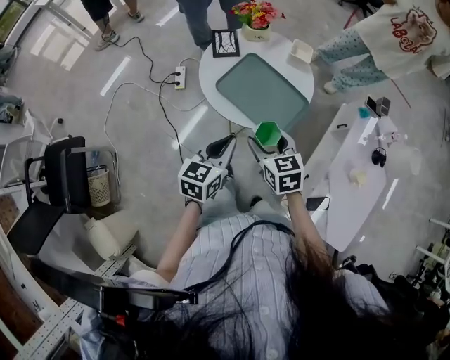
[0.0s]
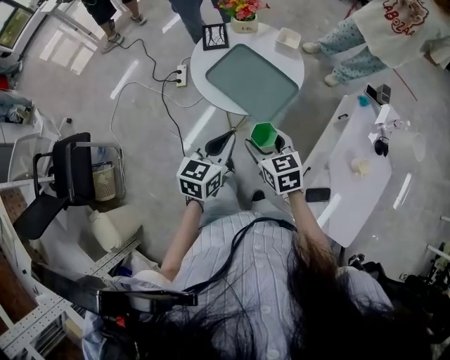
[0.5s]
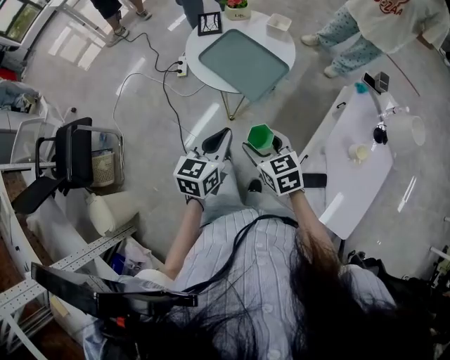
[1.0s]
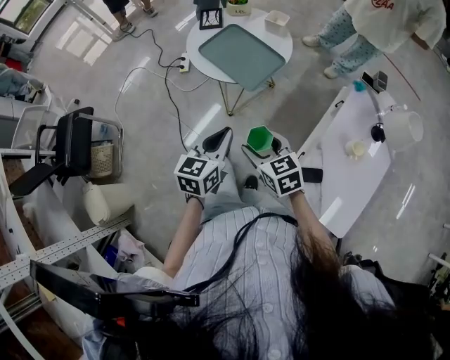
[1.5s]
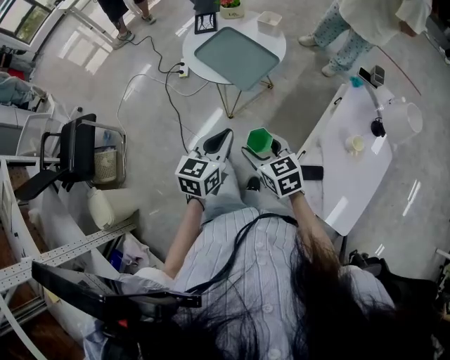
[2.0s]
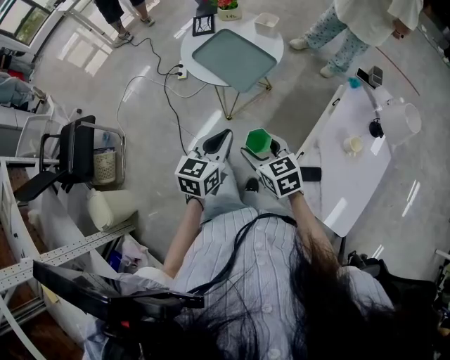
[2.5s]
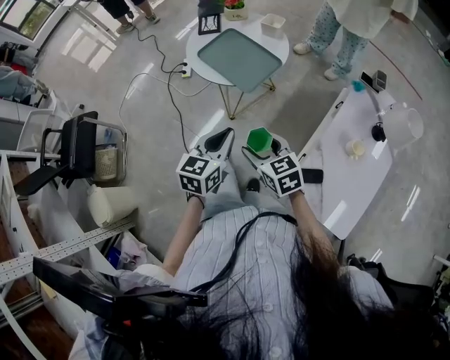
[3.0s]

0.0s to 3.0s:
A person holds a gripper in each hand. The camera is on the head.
0.0s to 1.5s: Both grippers travel together backward and to the right, some 25 cm.
1.5s to 3.0s: The grippers stay close to where they were, moving slightly.

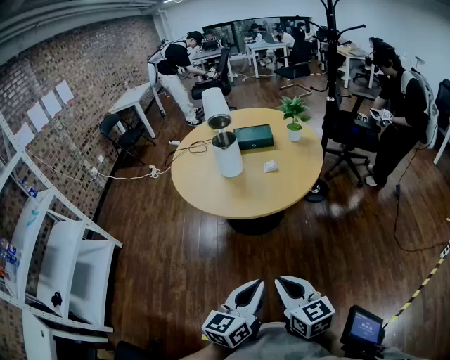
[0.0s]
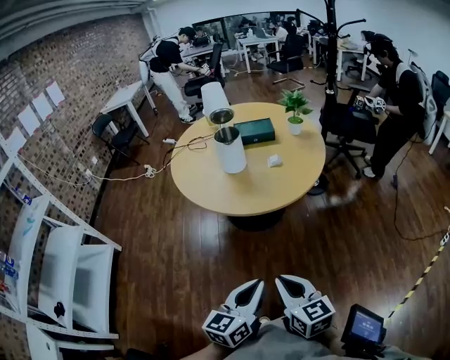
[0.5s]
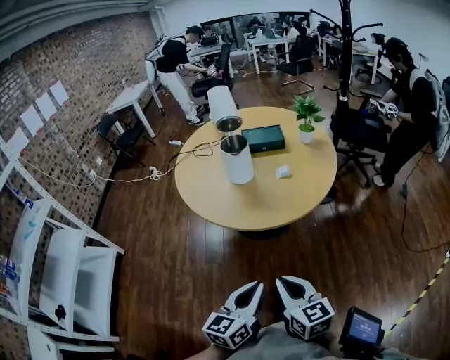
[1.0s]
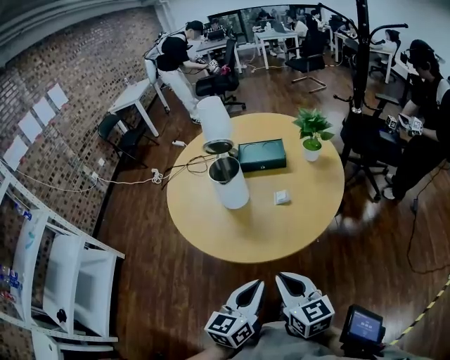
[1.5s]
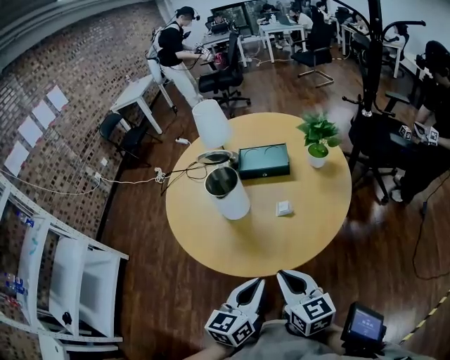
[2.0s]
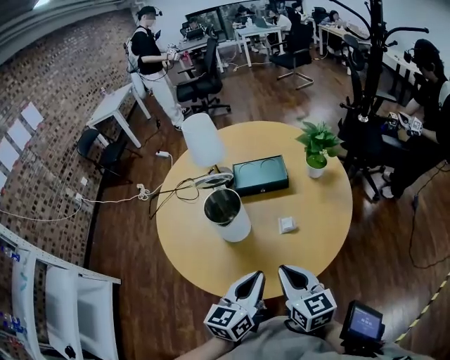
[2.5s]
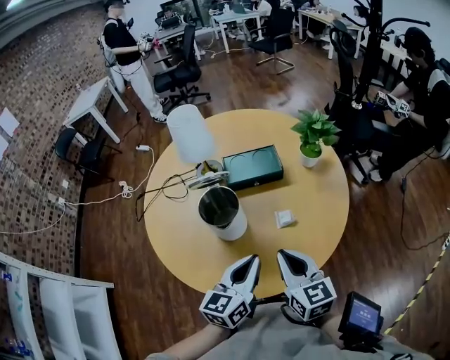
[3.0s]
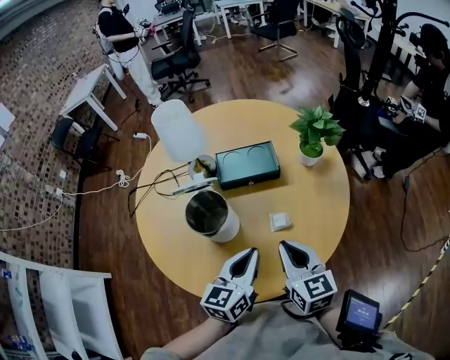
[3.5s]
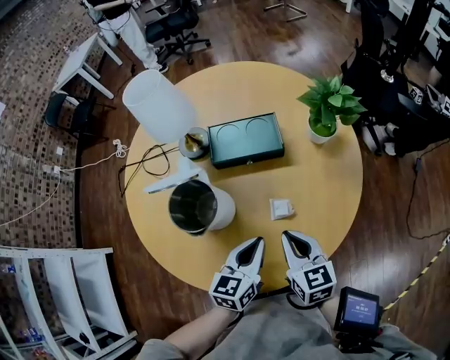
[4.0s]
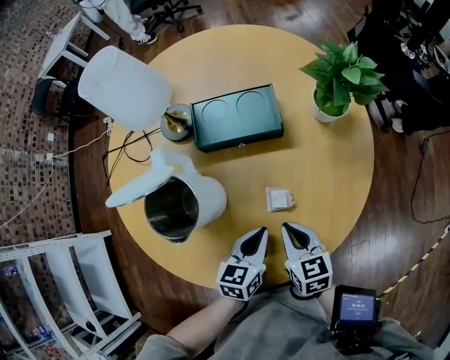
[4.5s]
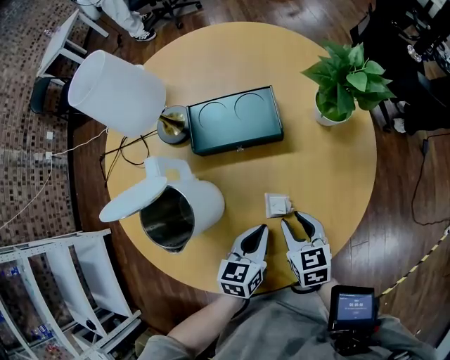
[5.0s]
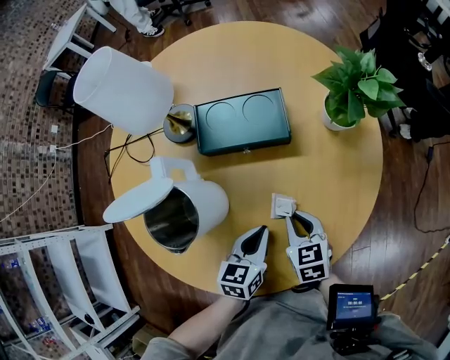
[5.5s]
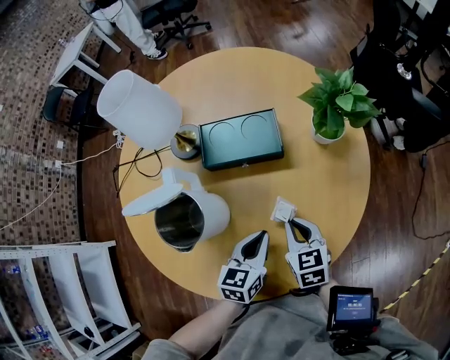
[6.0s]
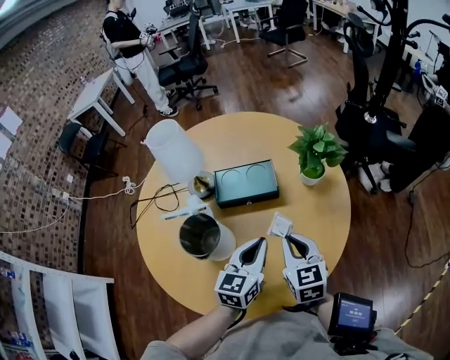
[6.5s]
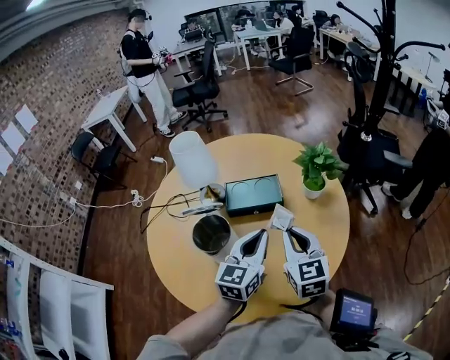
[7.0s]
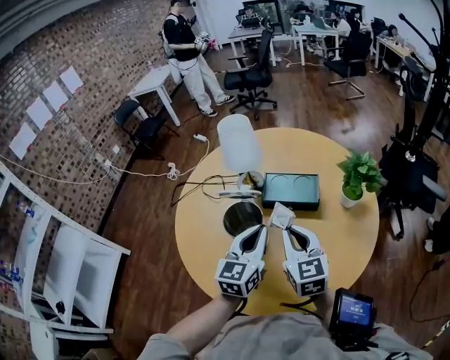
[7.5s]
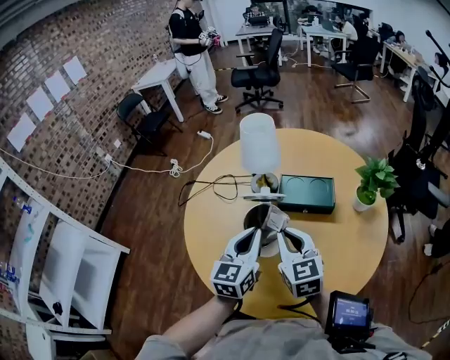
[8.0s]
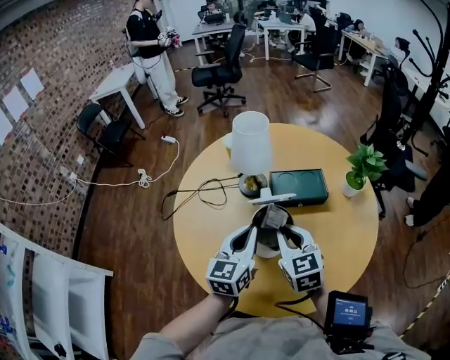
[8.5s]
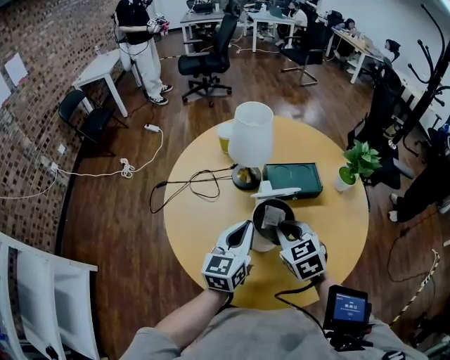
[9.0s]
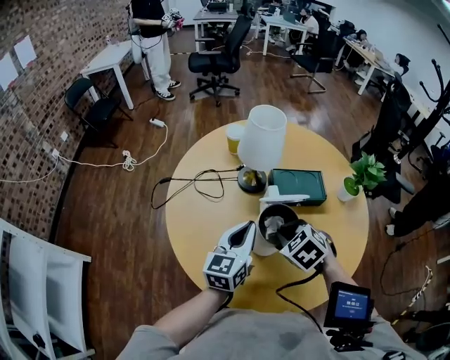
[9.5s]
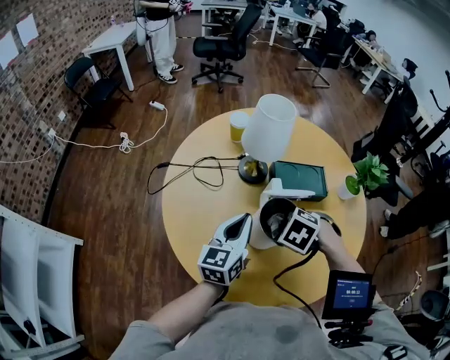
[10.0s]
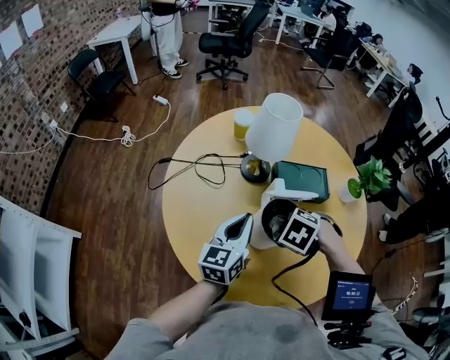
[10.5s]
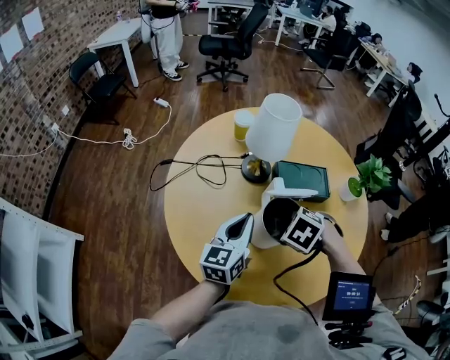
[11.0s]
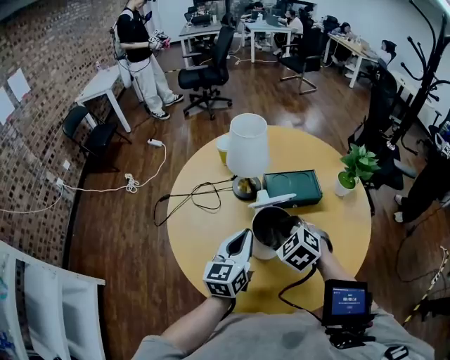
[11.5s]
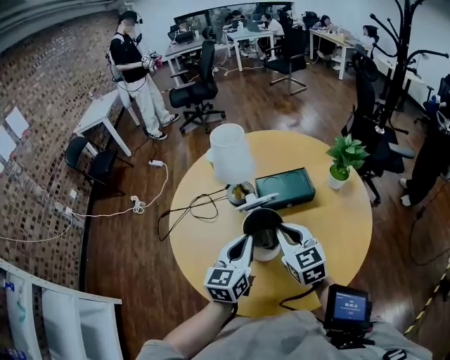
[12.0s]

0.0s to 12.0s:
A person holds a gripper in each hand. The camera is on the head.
0.0s to 2.0s: The two grippers go approximately 35 cm forward.
2.0s to 4.0s: The two grippers go approximately 30 cm forward and downward.
4.0s to 6.0s: The right gripper is displaced downward and forward by some 10 cm, and opens, then closes once more. The left gripper travels downward by some 5 cm.
6.0s to 8.0s: The two grippers go about 30 cm upward and to the left. The right gripper changes its angle by roughly 30 degrees. Meanwhile the left gripper changes its angle by about 30 degrees.
8.0s to 10.0s: The right gripper moves downward, some 10 cm, and tilts its fingers some 60 degrees downward. Meanwhile the left gripper shifts by approximately 15 cm.
10.0s to 12.0s: The right gripper moves upward, about 10 cm, and tilts its fingers roughly 60 degrees upward, while the left gripper ends up about 10 cm from where it was.

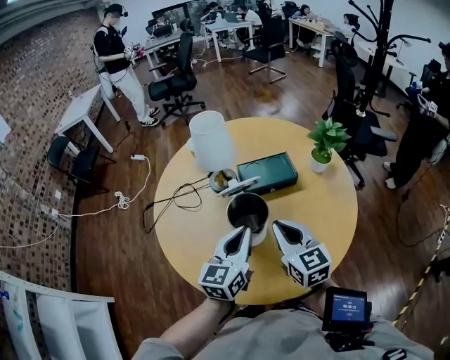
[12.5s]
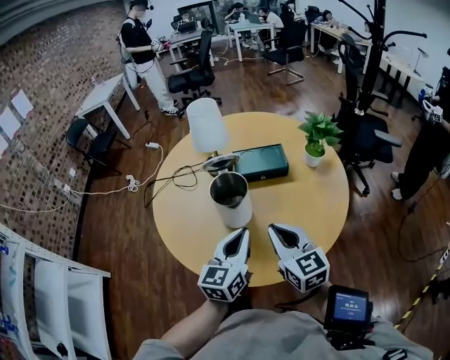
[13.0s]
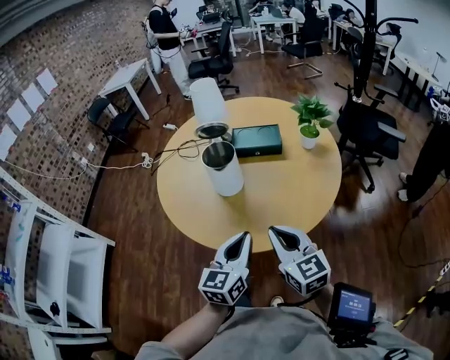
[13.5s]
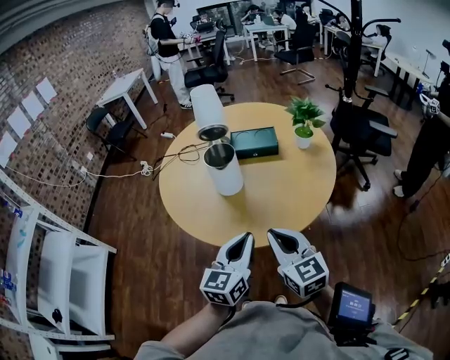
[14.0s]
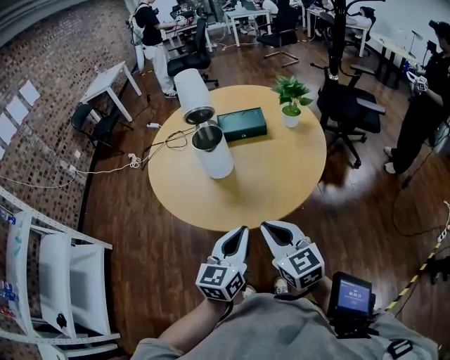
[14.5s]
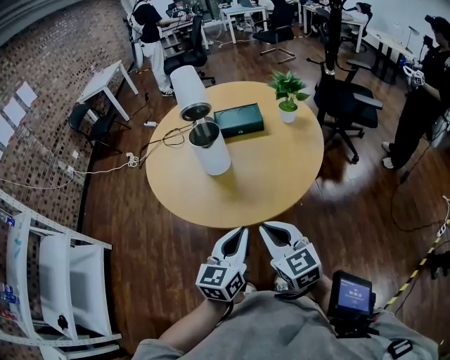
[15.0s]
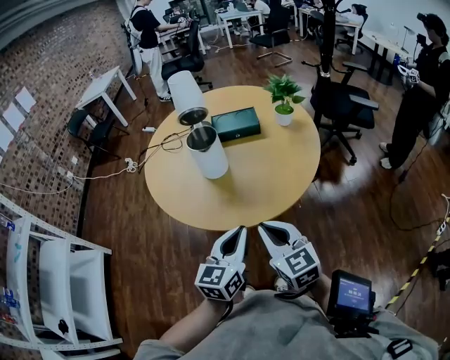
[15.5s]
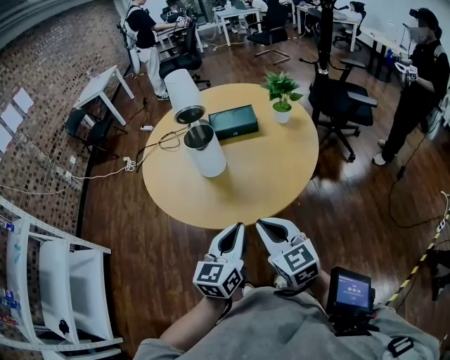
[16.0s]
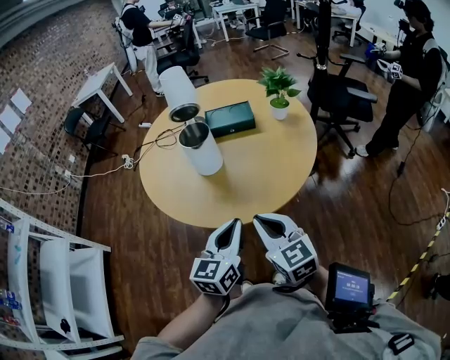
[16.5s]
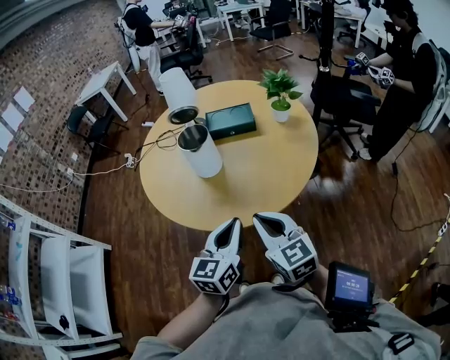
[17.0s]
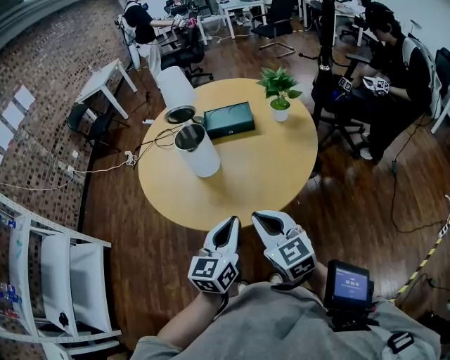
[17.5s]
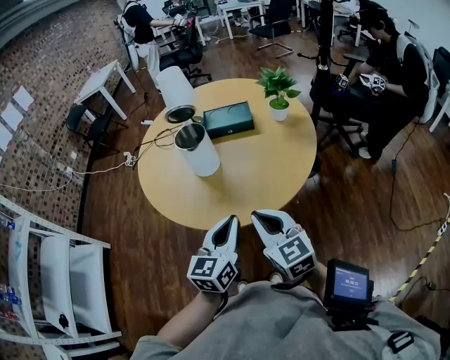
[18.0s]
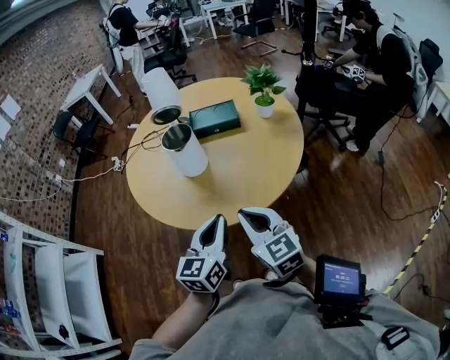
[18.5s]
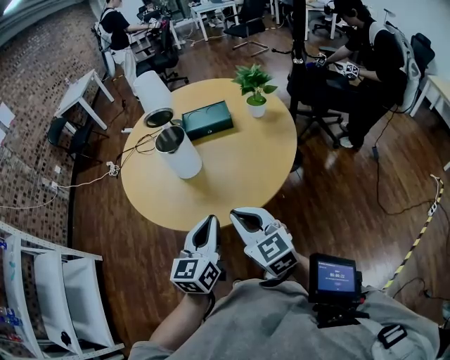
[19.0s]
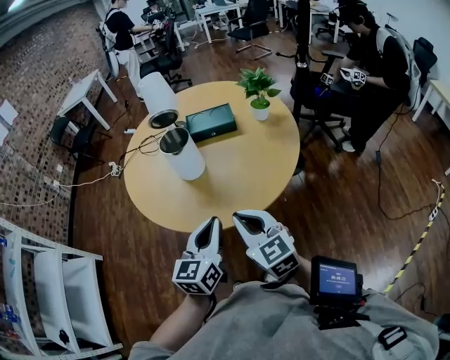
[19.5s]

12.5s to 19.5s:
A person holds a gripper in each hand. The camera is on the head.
12.5s to 14.5s: The grippers both shift backward by about 30 cm.
14.5s to 16.0s: The grippers stay close to where they were, moving slightly.
16.0s to 17.5s: The right gripper ends up about 5 cm from where it was.
17.5s to 19.5s: The grippers stay close to where they were, moving slightly.

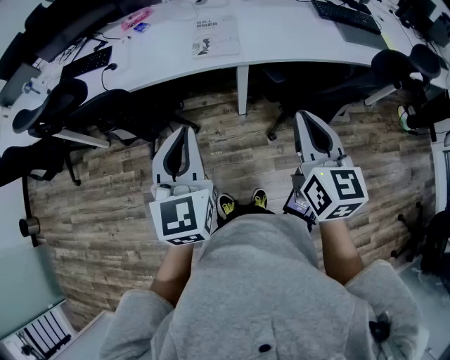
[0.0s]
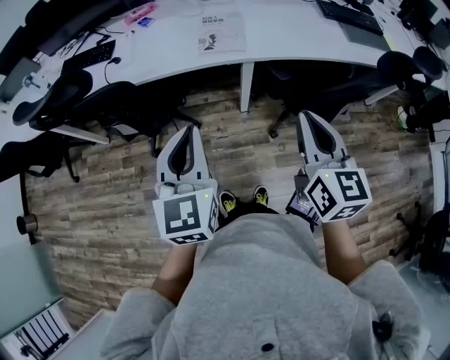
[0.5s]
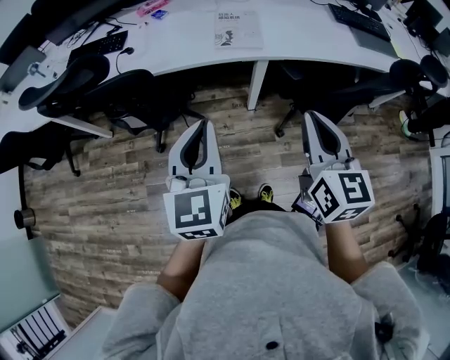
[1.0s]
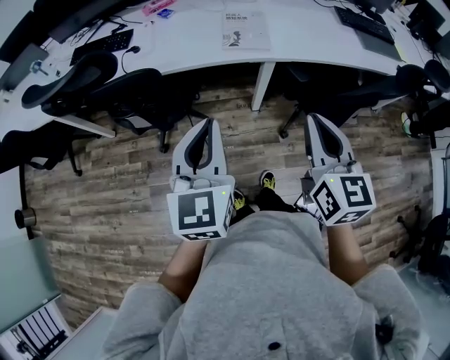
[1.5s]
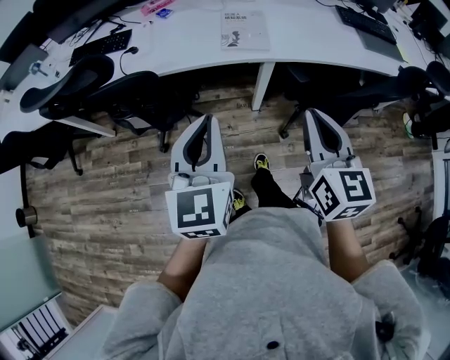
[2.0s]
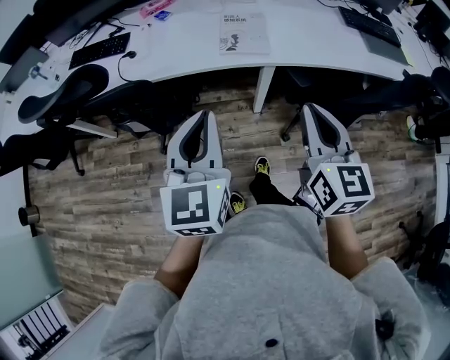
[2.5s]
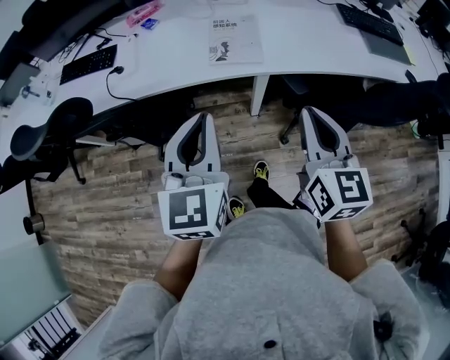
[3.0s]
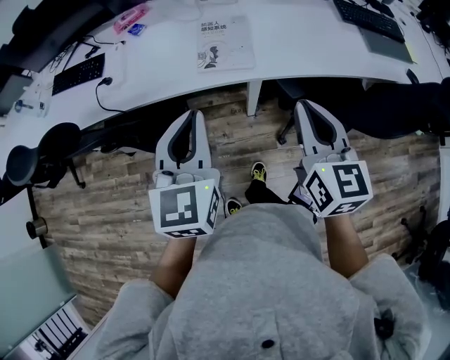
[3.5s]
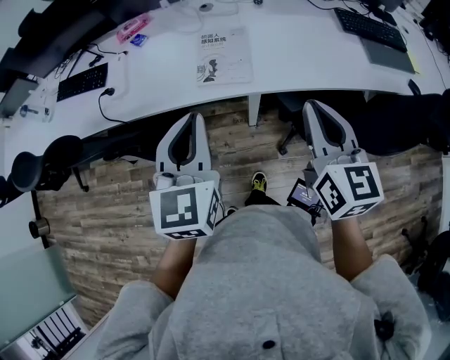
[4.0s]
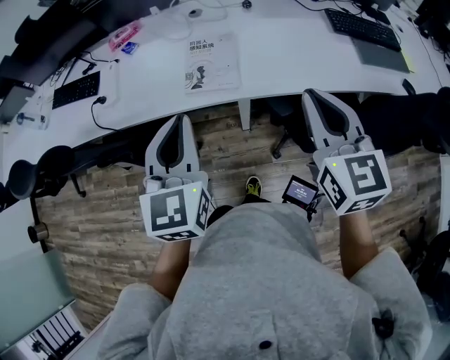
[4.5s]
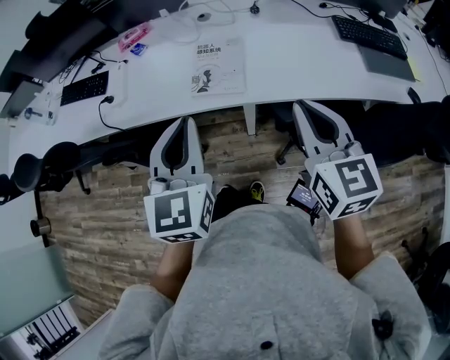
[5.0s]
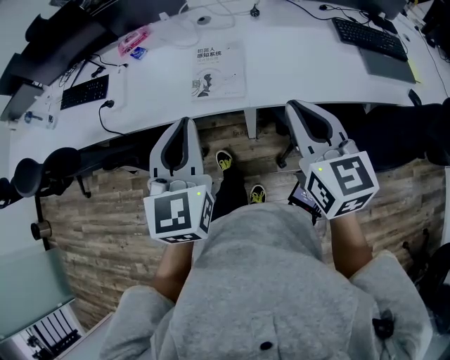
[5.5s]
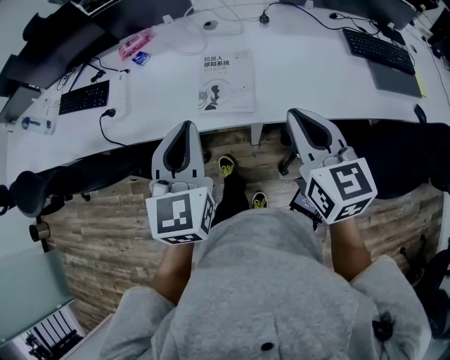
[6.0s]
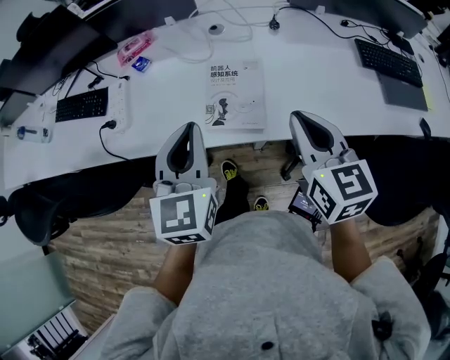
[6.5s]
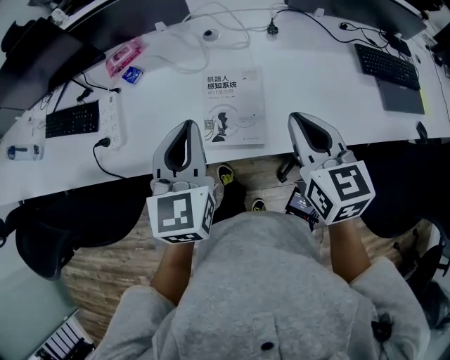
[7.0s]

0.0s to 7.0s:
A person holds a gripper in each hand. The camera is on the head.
0.0s to 2.0s: The right gripper moves to the left, about 10 cm; the left gripper heads to the left, covering approximately 5 cm.
2.0s to 3.5s: Both grippers travel together forward and to the right, approximately 15 cm.
3.5s to 5.0s: The left gripper changes place by some 5 cm. Meanwhile the right gripper is displaced to the right by some 5 cm.
5.0s to 7.0s: The grippers both shift forward by roughly 20 cm.
